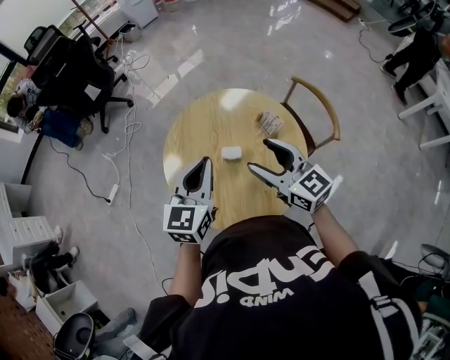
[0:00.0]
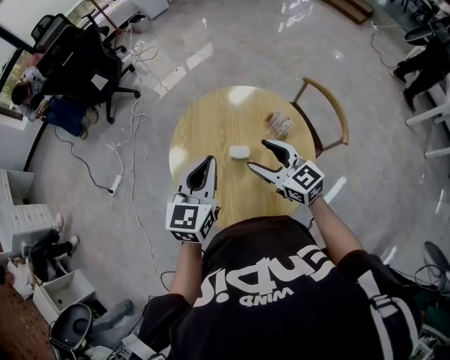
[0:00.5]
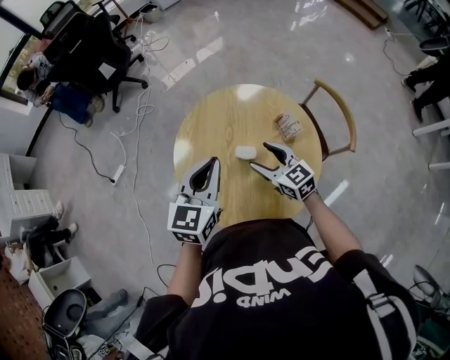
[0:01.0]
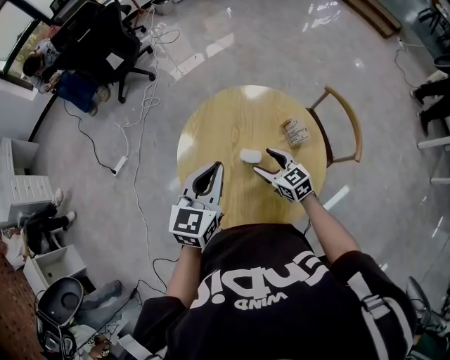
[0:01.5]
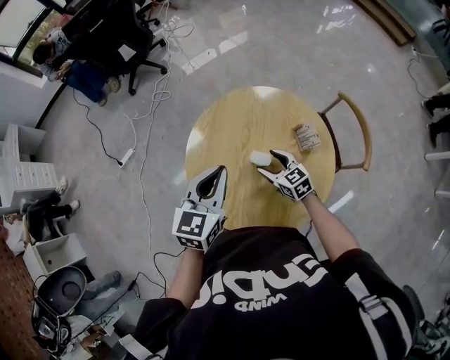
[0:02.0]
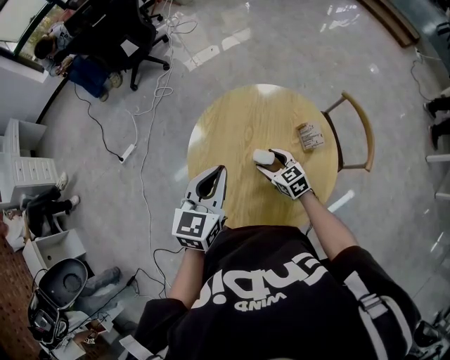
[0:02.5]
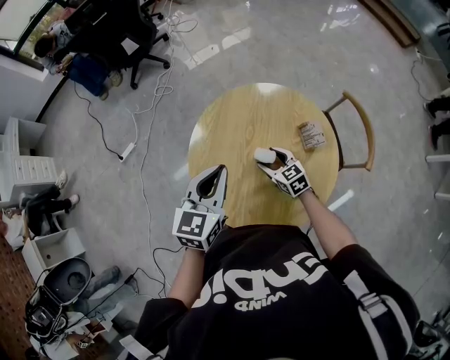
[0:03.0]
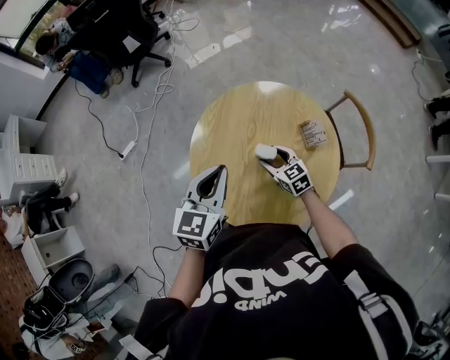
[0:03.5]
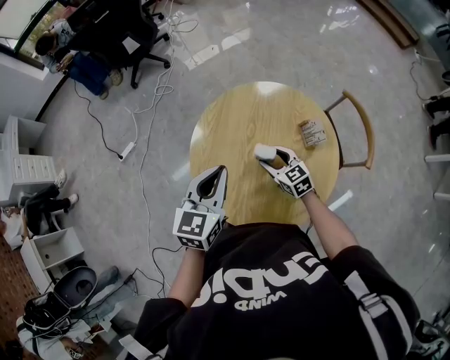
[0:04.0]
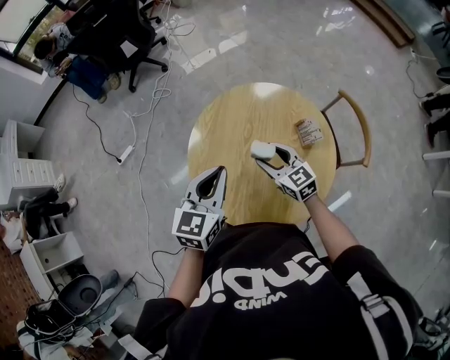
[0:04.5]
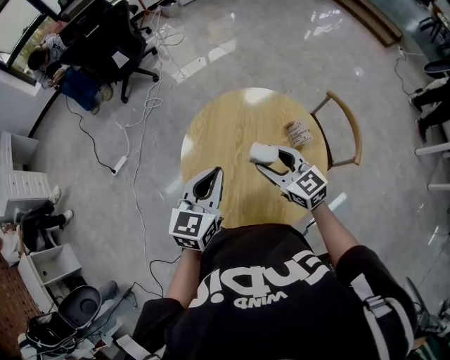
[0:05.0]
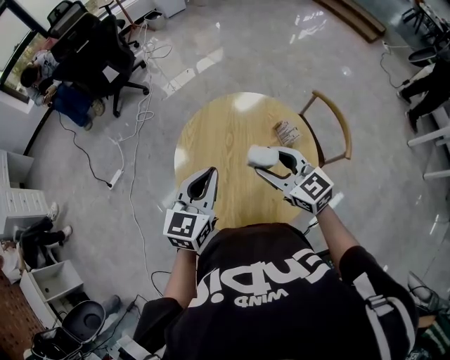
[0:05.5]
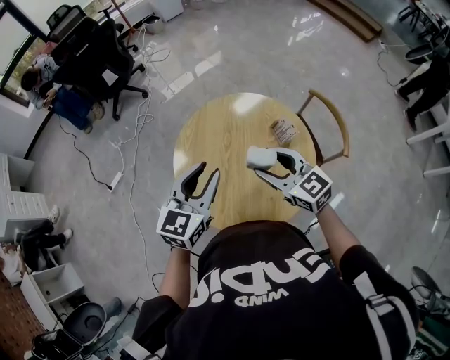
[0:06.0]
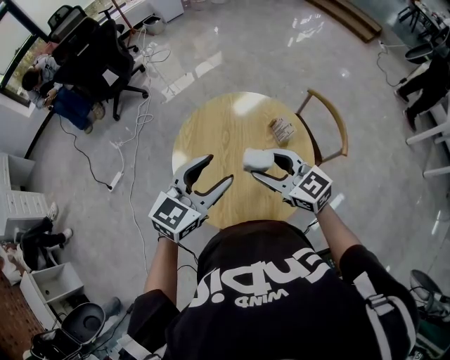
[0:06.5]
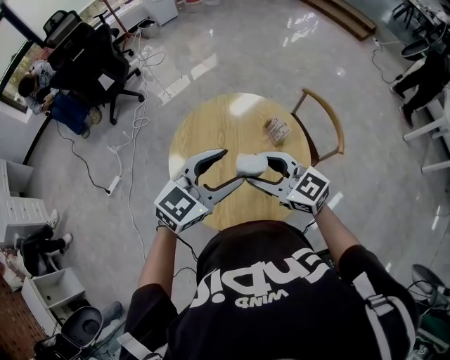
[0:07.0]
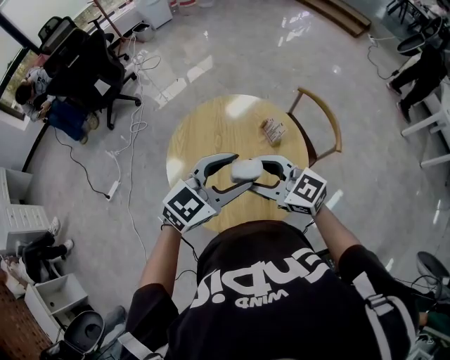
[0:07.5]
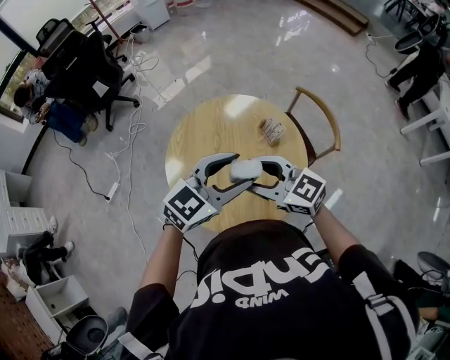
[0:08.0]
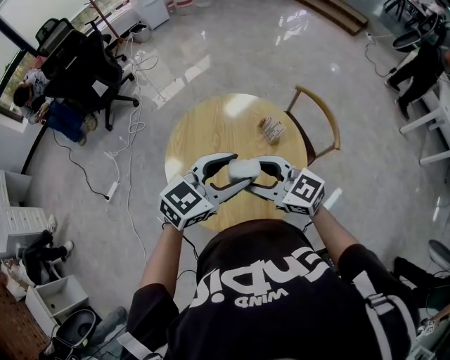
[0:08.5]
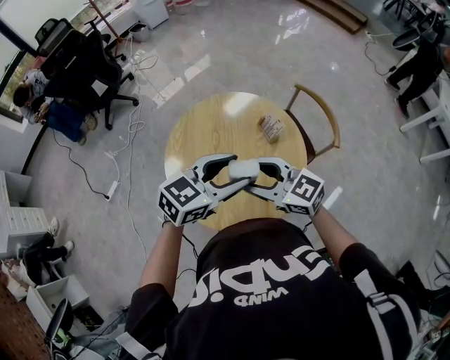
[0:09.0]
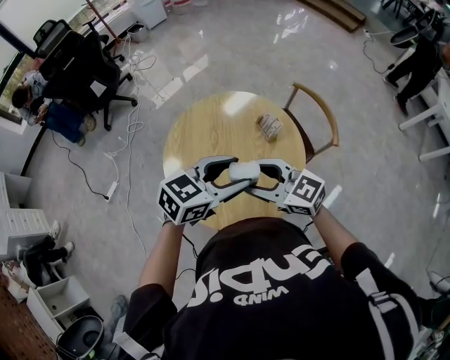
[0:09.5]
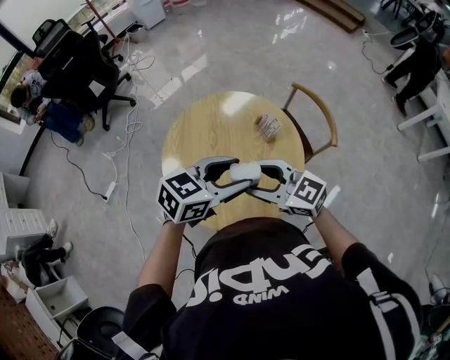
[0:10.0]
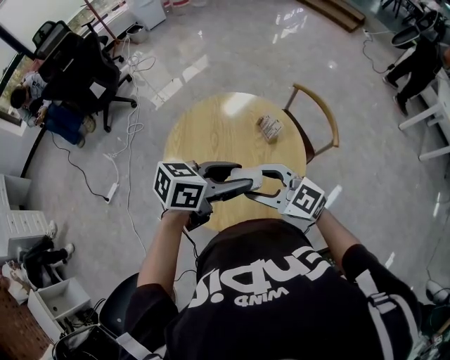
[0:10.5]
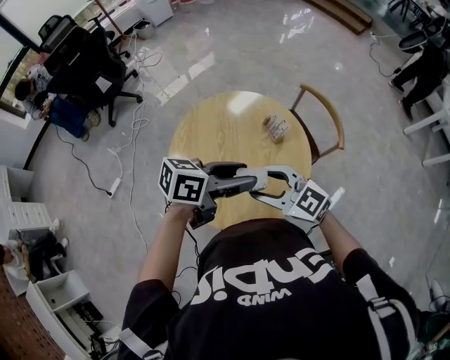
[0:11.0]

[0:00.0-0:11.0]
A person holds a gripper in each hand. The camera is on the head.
0:00.0 to 0:02.0: The right gripper moves downward, approximately 25 cm, and turns by approximately 30 degrees. Meanwhile the left gripper moves approximately 5 cm.
0:02.0 to 0:03.5: The grippers stay close to where they were, moving slightly.
0:03.5 to 0:05.5: The right gripper is displaced upward by some 20 cm.
0:05.5 to 0:07.5: The right gripper goes some 5 cm backward. Meanwhile the left gripper goes approximately 10 cm to the right, rotates roughly 40 degrees, and opens.
0:07.5 to 0:09.0: The grippers make only small movements.
0:09.0 to 0:11.0: The left gripper swivels roughly 40 degrees.

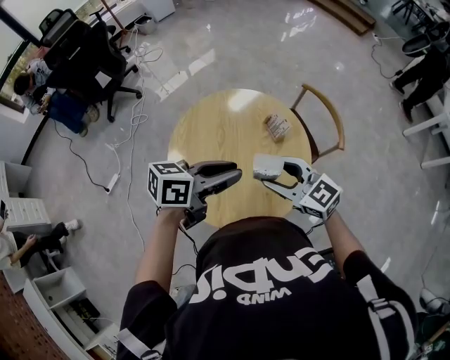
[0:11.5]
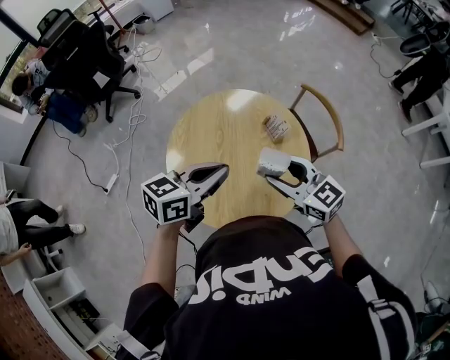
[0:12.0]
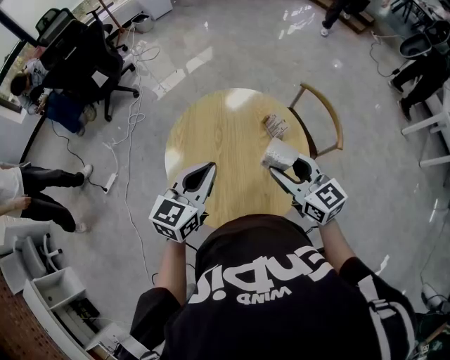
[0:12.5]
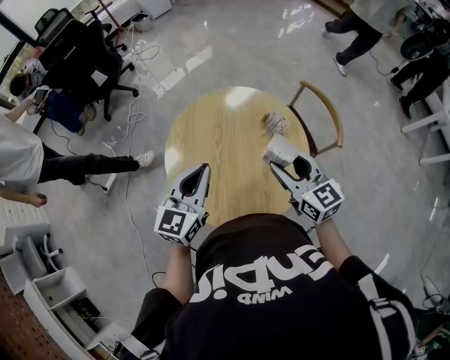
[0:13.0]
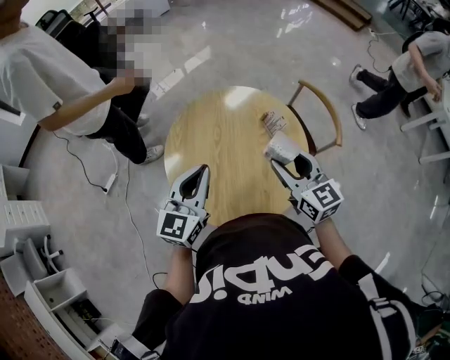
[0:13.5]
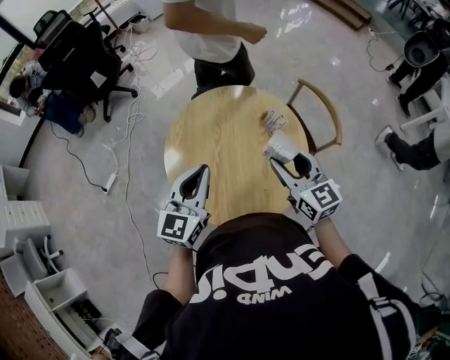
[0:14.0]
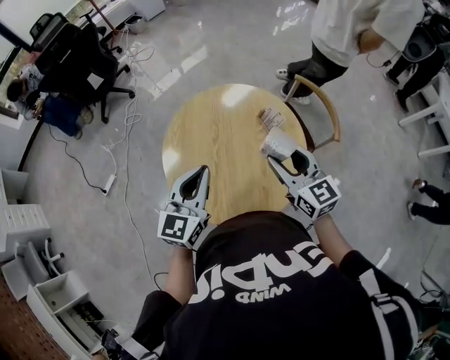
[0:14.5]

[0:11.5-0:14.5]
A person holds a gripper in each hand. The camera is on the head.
0:11.5 to 0:13.0: The right gripper moves approximately 5 cm, and rotates approximately 20 degrees. The left gripper shifts by some 10 cm, changes its angle by roughly 50 degrees, and closes its fingers.
0:13.0 to 0:14.5: The grippers make only small movements.

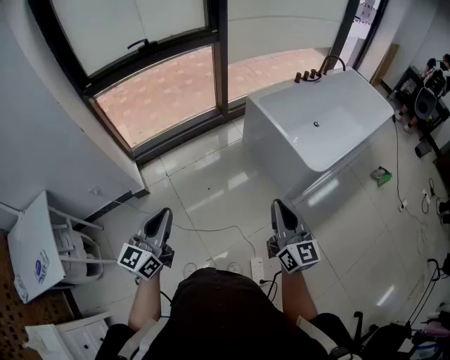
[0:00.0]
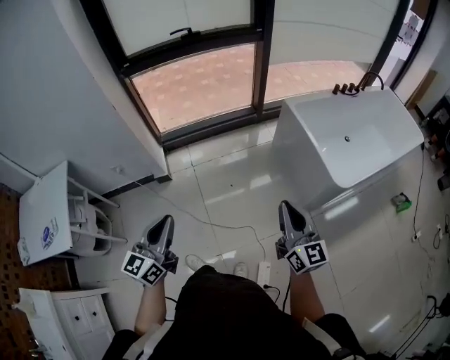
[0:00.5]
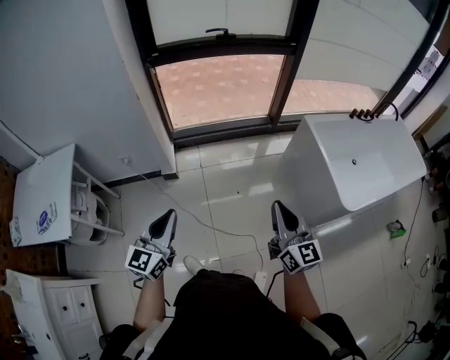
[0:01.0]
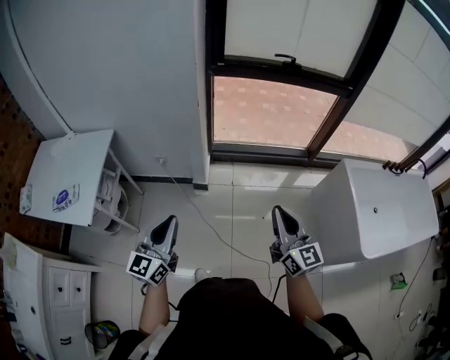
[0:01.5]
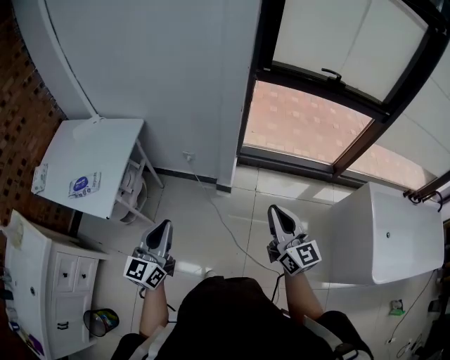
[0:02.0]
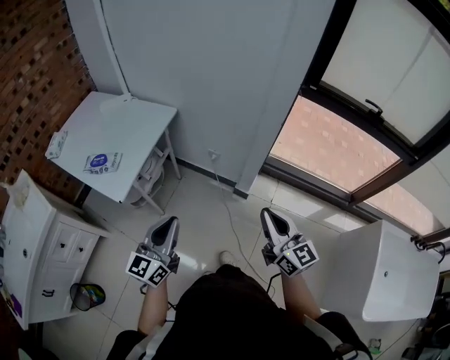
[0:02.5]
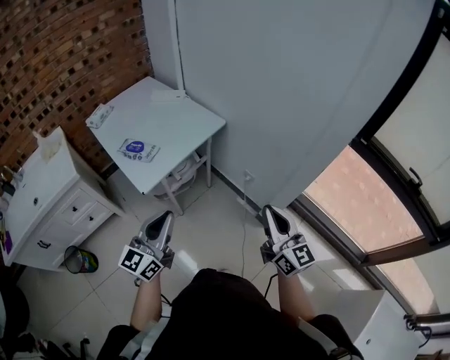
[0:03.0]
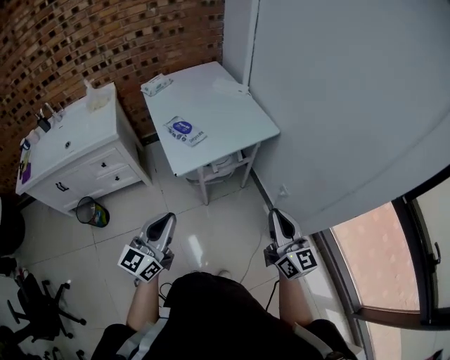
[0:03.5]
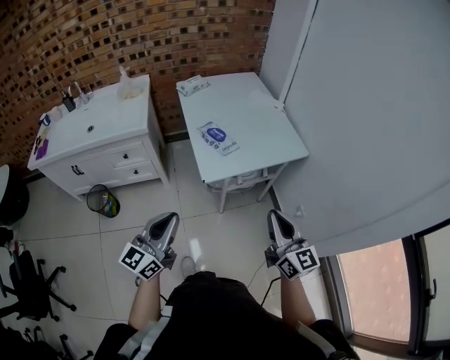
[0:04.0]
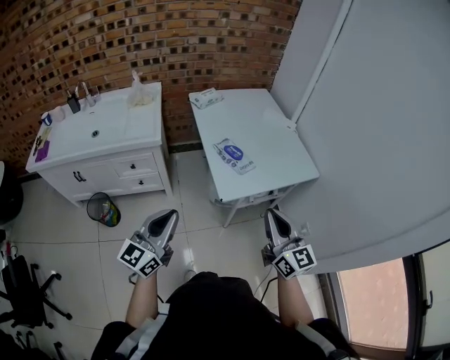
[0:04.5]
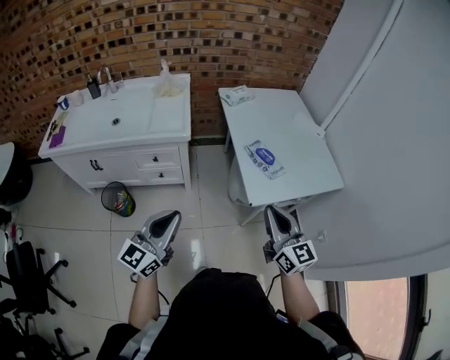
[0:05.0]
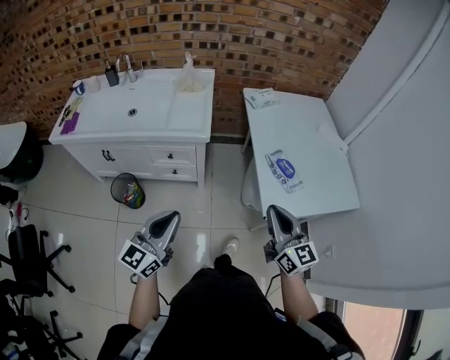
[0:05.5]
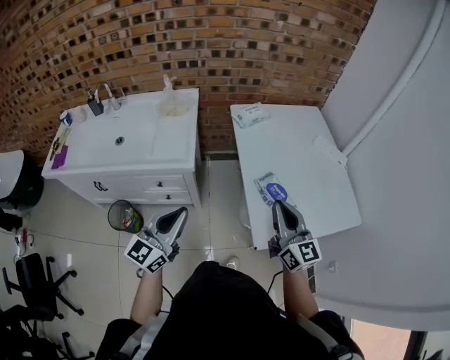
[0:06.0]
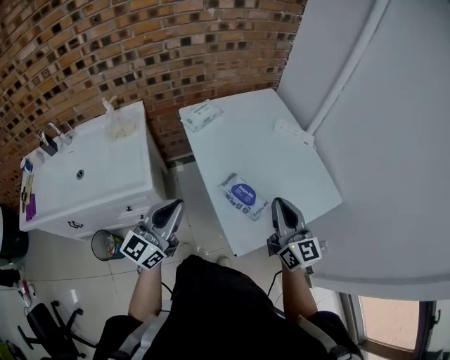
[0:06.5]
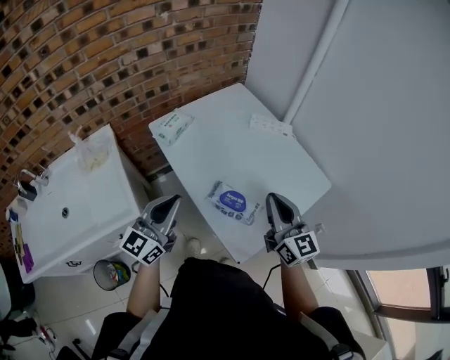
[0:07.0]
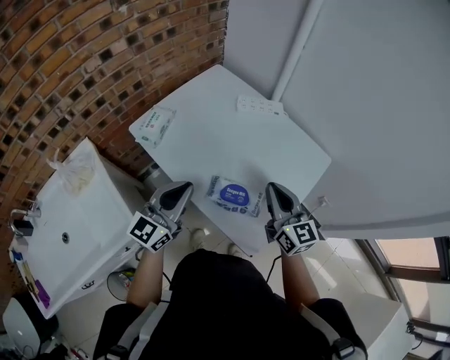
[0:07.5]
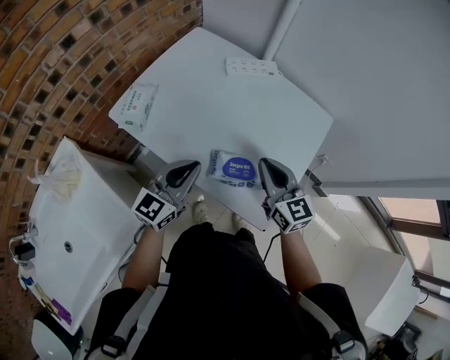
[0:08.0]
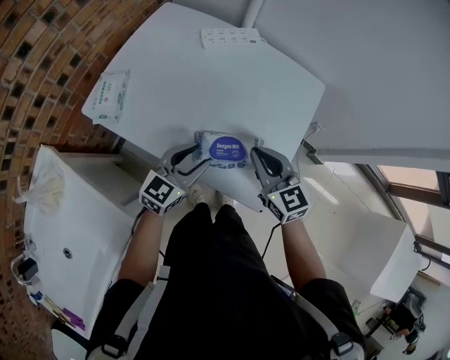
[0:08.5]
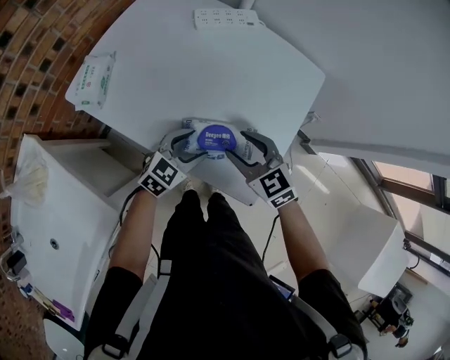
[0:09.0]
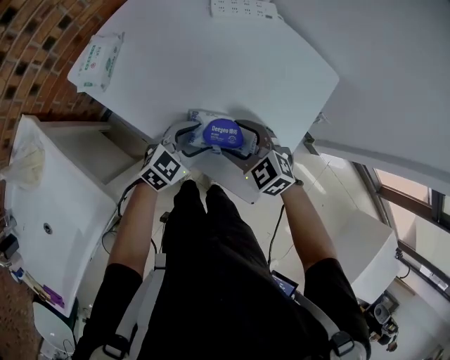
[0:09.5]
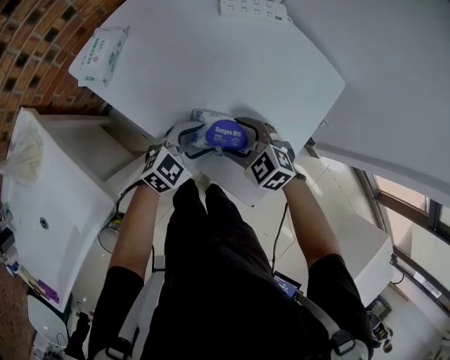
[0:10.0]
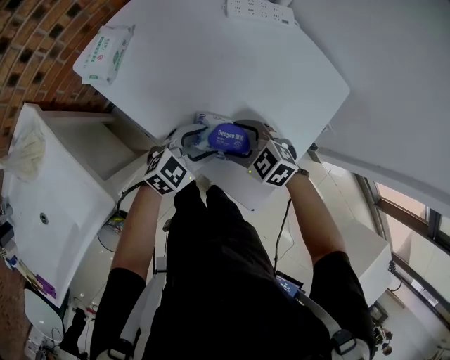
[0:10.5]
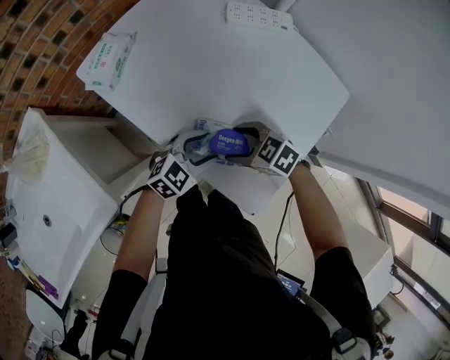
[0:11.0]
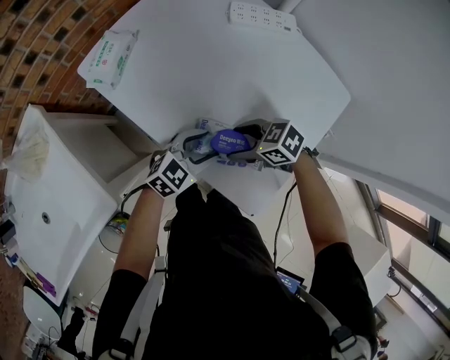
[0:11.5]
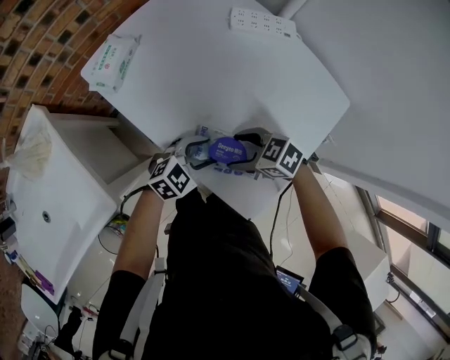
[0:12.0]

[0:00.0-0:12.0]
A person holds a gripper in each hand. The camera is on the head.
0:00.0 to 0:02.0: The two grippers travel together, some 40 cm. The left gripper turns by roughly 40 degrees. The right gripper rotates roughly 50 degrees.
0:02.0 to 0:04.0: The left gripper moves roughly 25 cm, and turns by about 50 degrees. Meanwhile the right gripper shifts by some 40 cm, and swivels some 60 degrees.
0:04.0 to 0:06.0: The grippers both shift forward and to the left by some 35 cm.
0:06.0 to 0:08.0: The right gripper shifts by about 20 cm, and rotates some 40 degrees; the left gripper shifts by some 35 cm, and rotates roughly 50 degrees.
0:08.0 to 0:10.0: The right gripper moves downward, roughly 15 cm, tips its fingers downward by roughly 40 degrees, and opens, while the left gripper heads downward and to the right, covering roughly 20 cm, swivels roughly 30 degrees, and opens its fingers.
0:10.0 to 0:12.0: The right gripper rotates approximately 30 degrees.

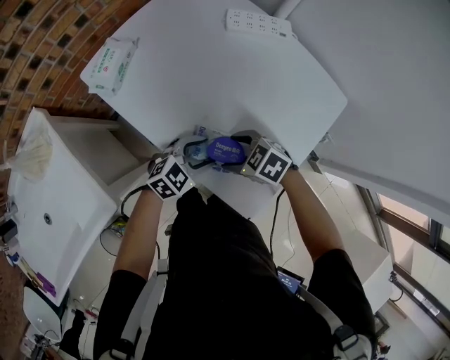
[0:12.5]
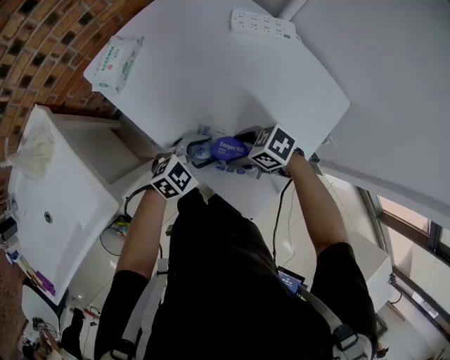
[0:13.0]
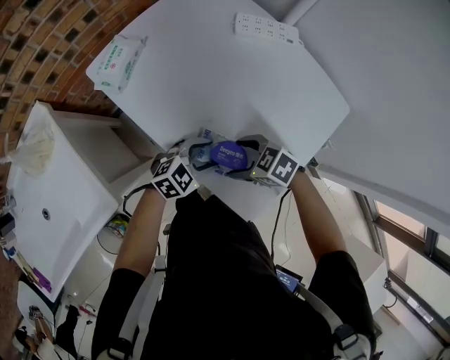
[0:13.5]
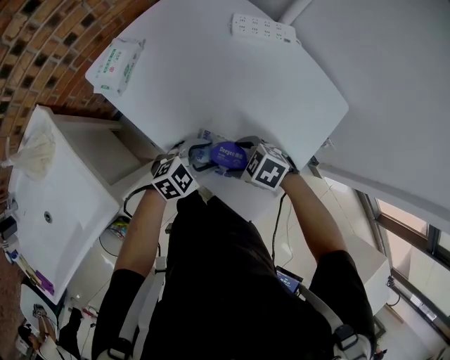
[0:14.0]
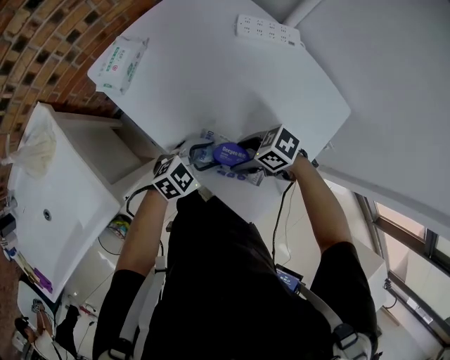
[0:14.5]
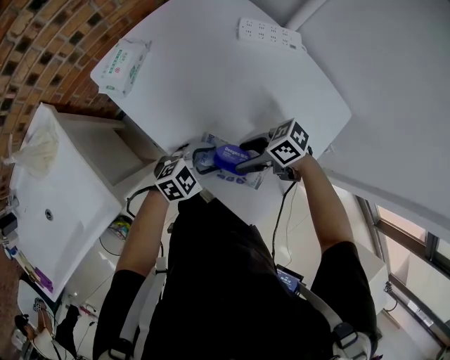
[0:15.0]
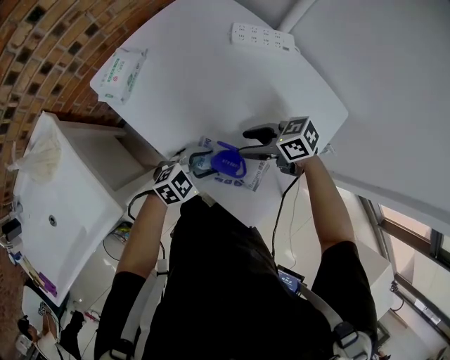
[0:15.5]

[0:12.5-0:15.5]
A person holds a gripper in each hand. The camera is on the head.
0:14.0 to 0:15.5: The right gripper moves approximately 10 cm, and rotates about 40 degrees.
